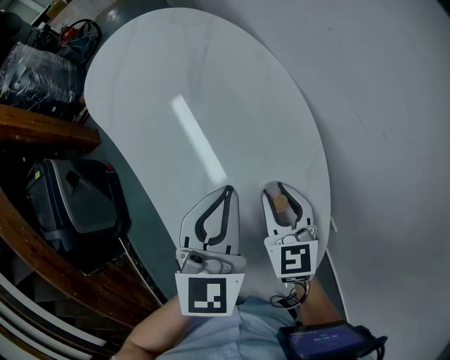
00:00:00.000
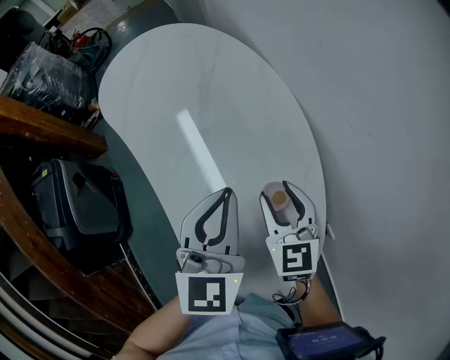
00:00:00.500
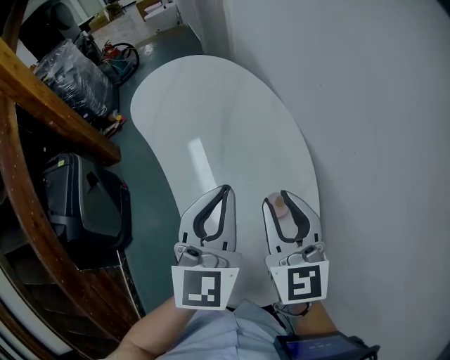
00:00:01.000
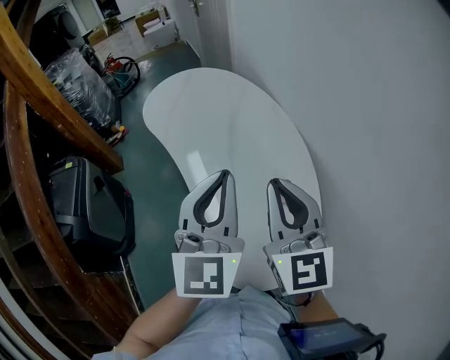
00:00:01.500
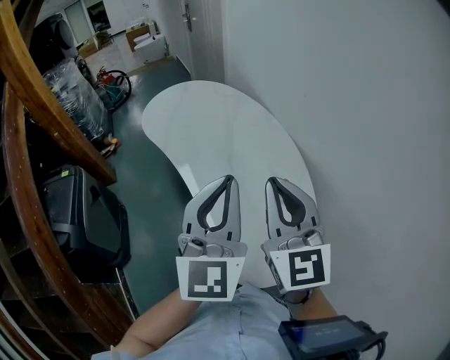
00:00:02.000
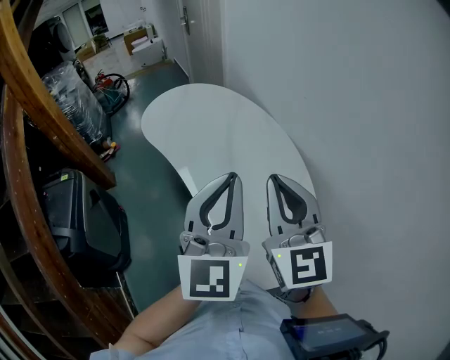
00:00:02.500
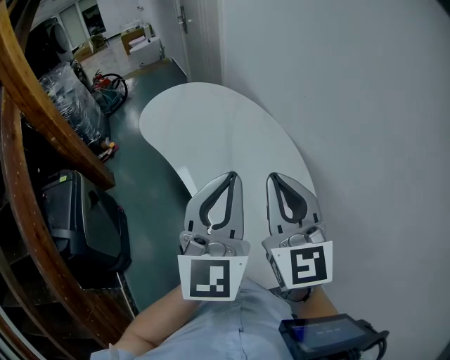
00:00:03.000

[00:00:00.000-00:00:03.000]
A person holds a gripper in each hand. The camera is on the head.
00:00:00.000 to 00:00:01.500: Both grippers travel together upward, about 20 cm. The right gripper changes its angle by about 30 degrees, and closes; the left gripper turns by approximately 30 degrees.
00:00:01.500 to 00:00:03.000: The right gripper changes place by about 5 cm.

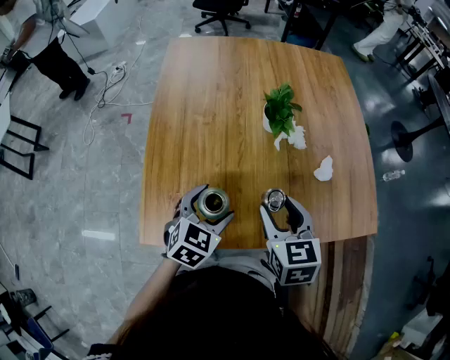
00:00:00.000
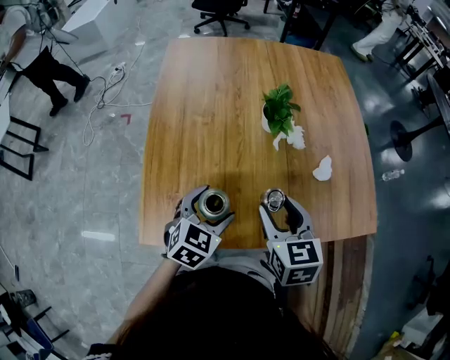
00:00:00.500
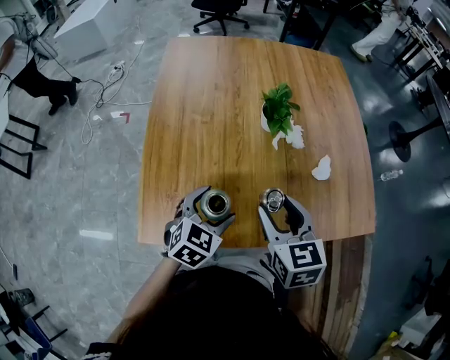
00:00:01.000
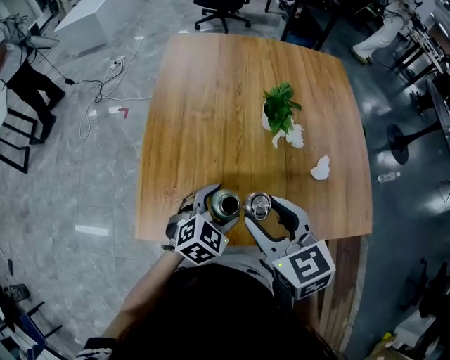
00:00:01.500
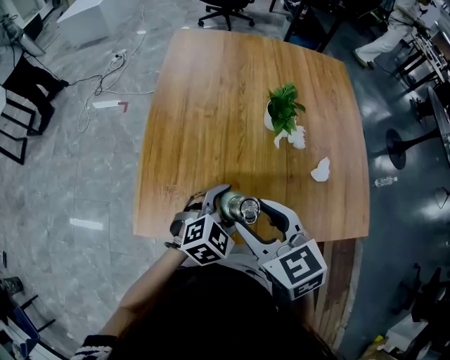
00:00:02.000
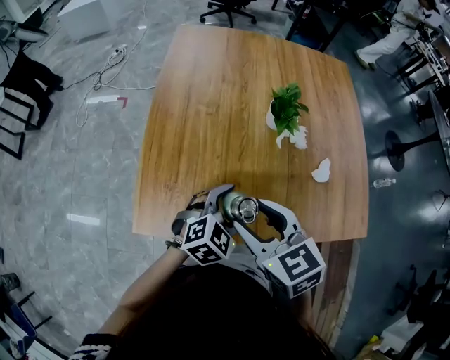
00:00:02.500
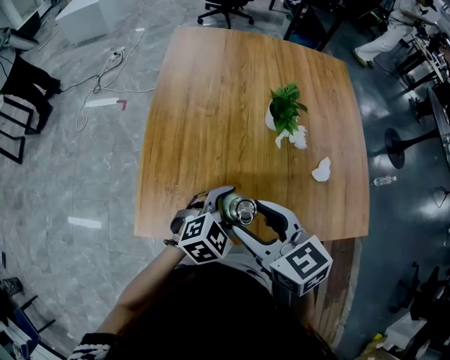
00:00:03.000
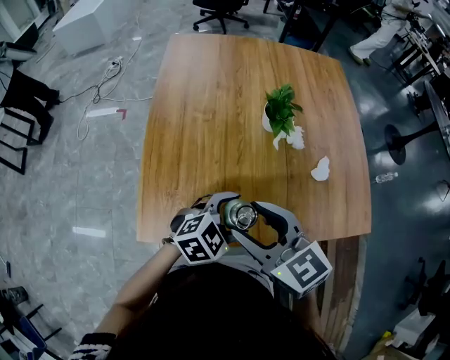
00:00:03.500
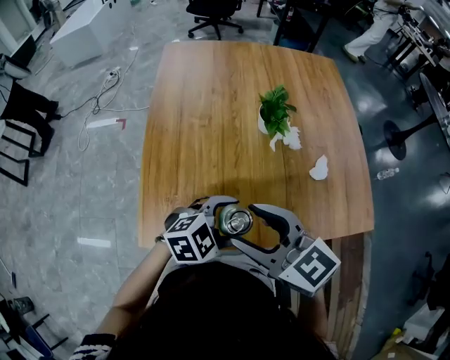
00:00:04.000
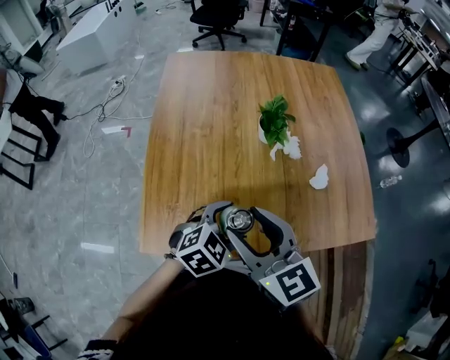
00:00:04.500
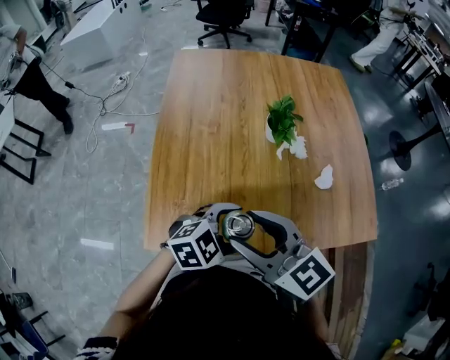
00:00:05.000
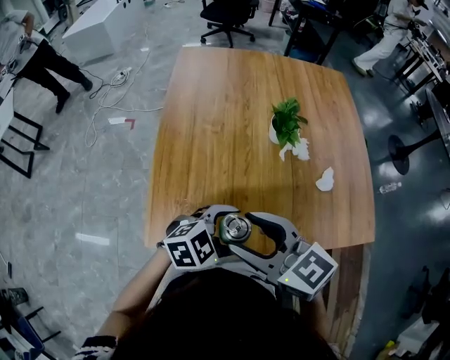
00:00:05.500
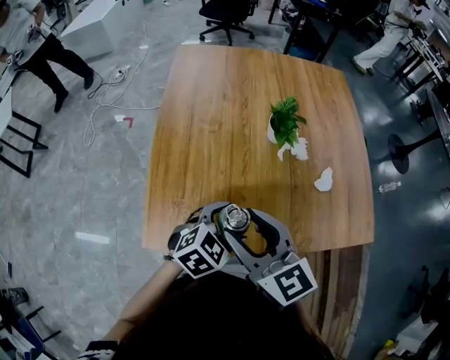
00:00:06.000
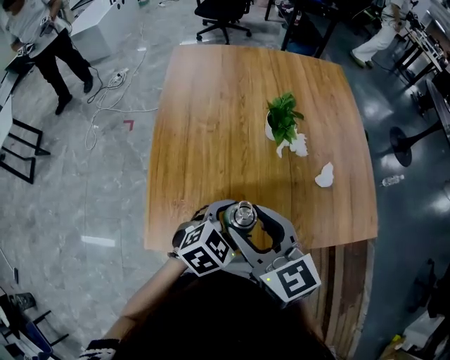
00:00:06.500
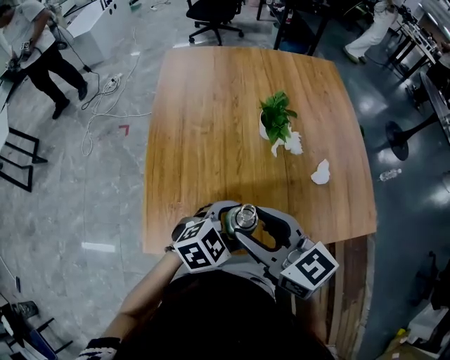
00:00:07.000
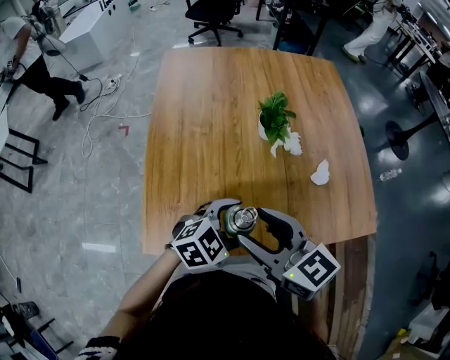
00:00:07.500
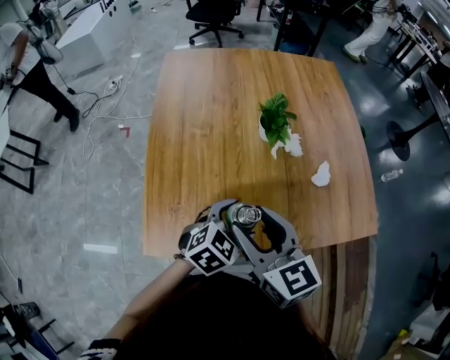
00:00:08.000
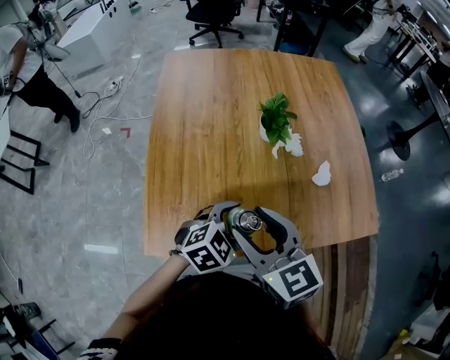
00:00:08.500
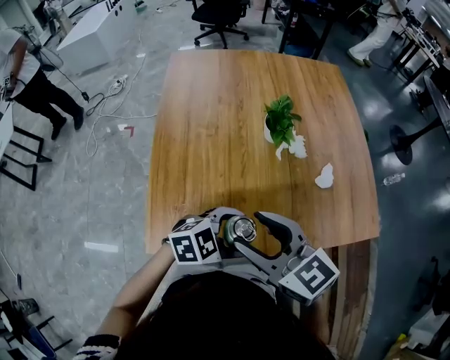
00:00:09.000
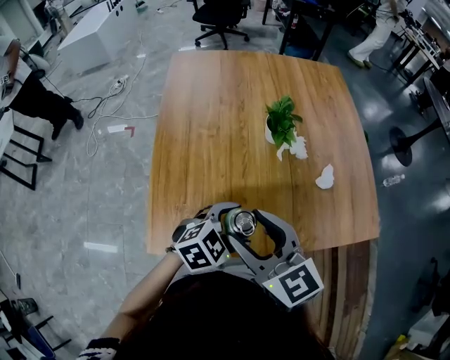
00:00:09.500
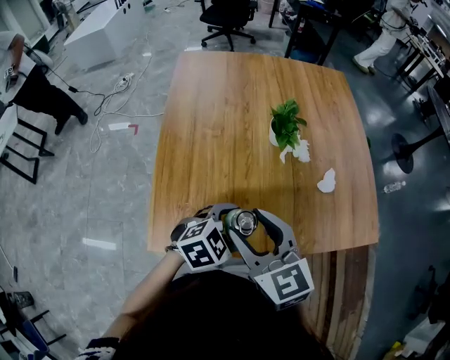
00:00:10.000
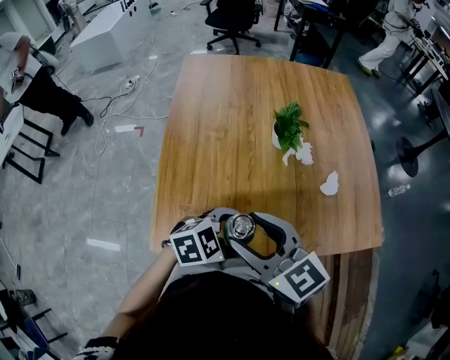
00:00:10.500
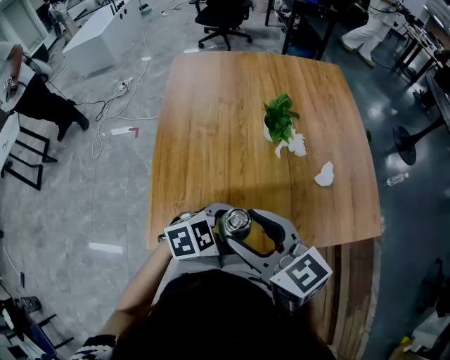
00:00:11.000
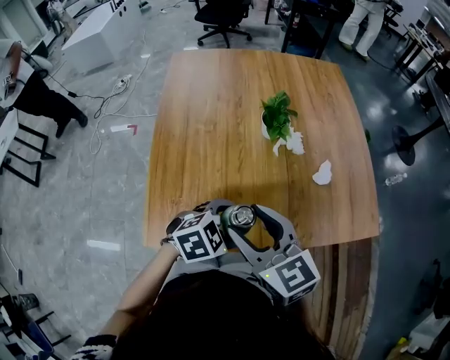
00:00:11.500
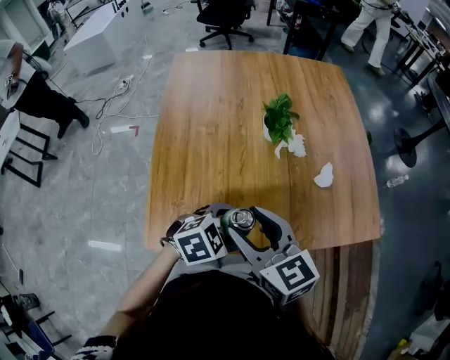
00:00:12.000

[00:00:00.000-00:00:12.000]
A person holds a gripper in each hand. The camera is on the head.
00:00:00.000 to 00:00:02.000: The left gripper is displaced to the right by about 5 cm. The right gripper shifts roughly 10 cm to the left, and swivels about 30 degrees.
00:00:02.000 to 00:00:04.000: The left gripper swivels some 20 degrees.
00:00:04.000 to 00:00:06.000: The left gripper turns by some 20 degrees.

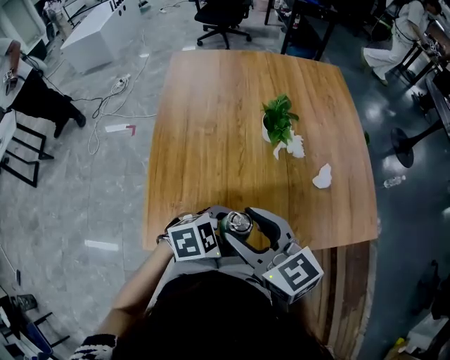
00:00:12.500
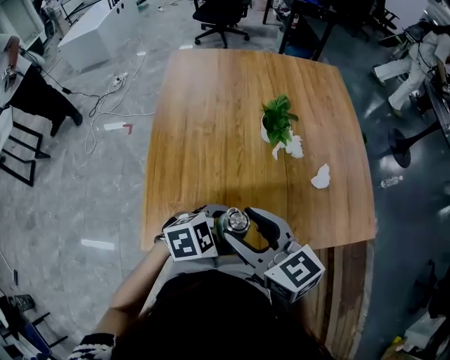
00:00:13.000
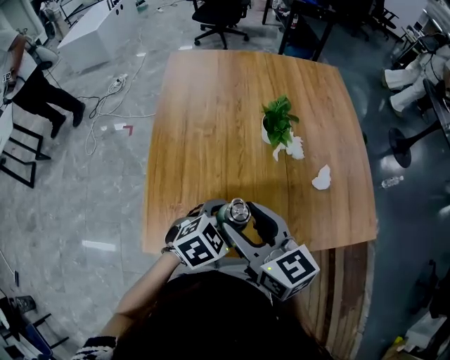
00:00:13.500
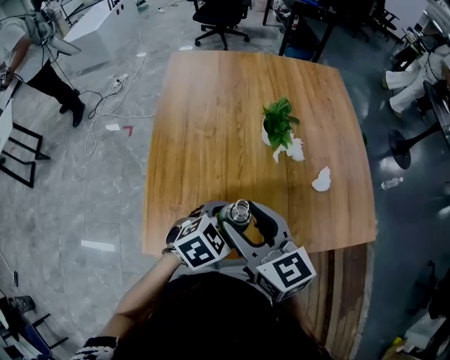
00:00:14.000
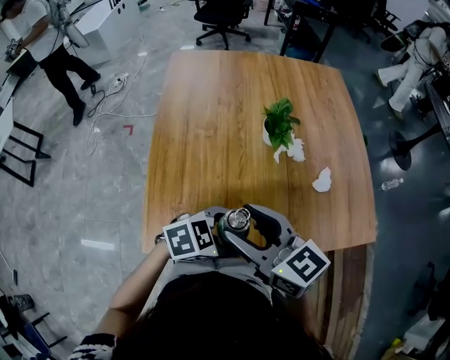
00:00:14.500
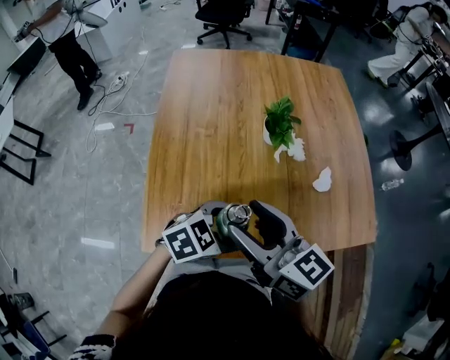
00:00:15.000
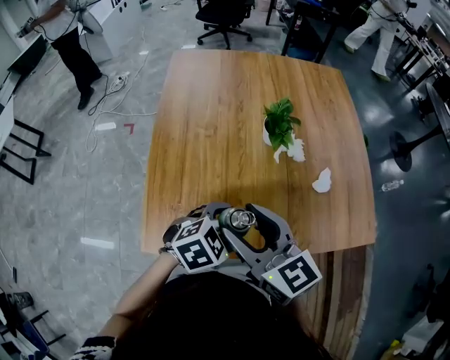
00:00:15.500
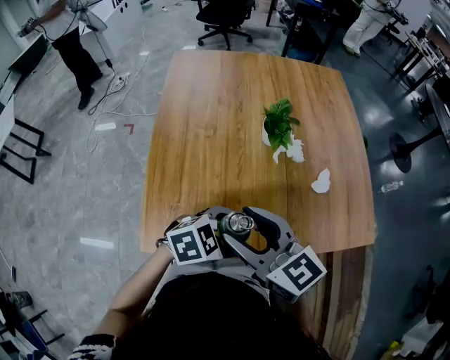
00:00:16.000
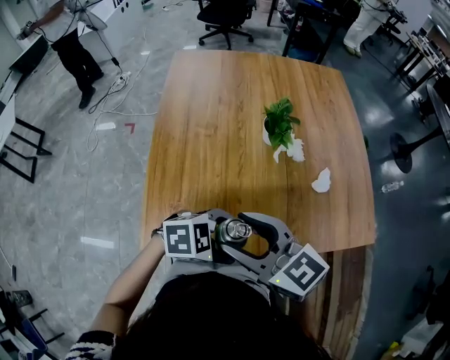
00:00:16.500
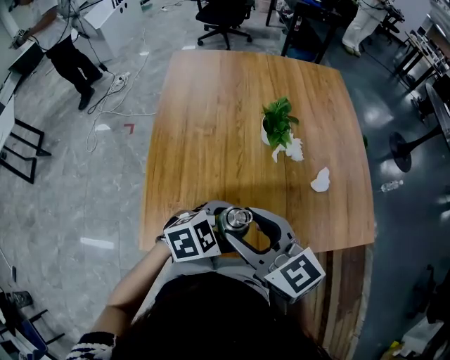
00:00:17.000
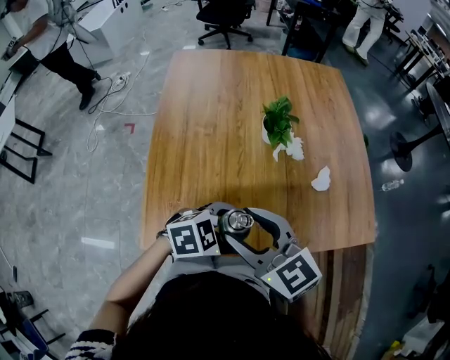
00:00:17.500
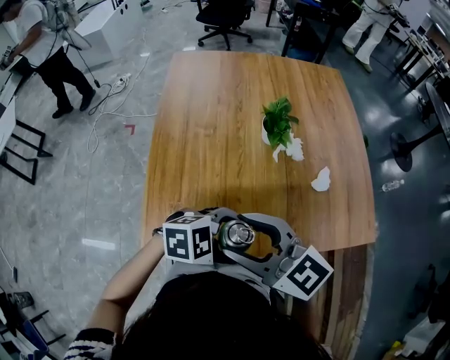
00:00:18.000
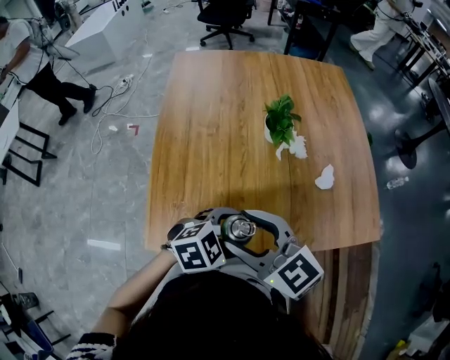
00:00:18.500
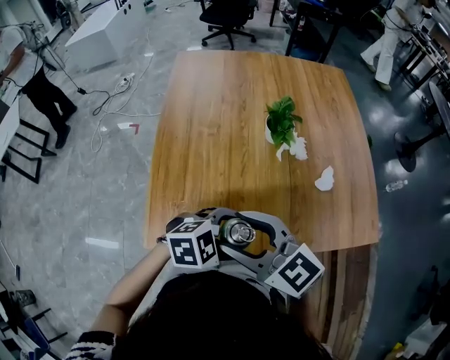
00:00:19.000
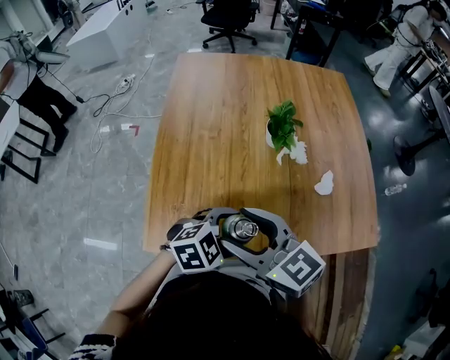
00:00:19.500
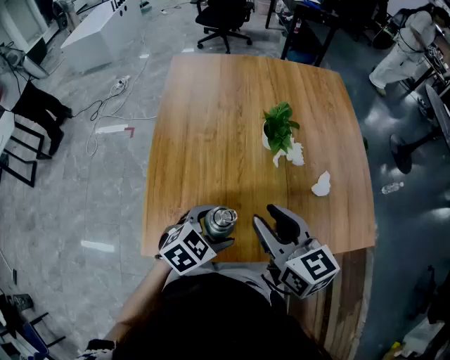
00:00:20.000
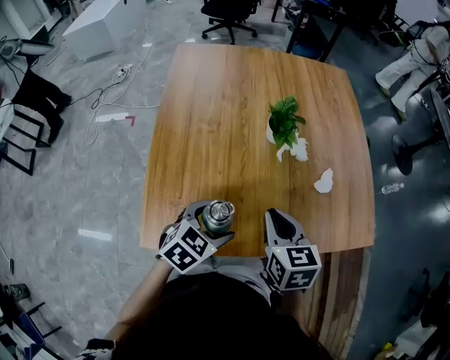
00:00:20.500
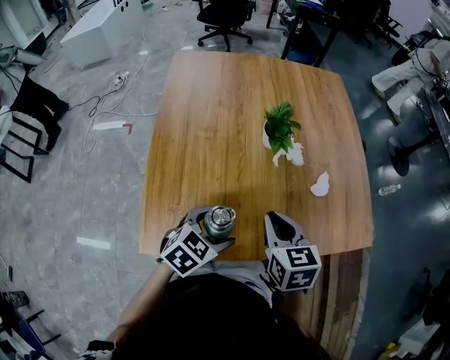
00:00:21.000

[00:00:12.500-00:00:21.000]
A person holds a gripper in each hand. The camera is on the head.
00:00:19.000 to 00:00:21.000: The left gripper shifts by roughly 10 cm, and rotates about 30 degrees. Meanwhile the right gripper ends up approximately 15 cm from where it was, turns by roughly 50 degrees, and closes.

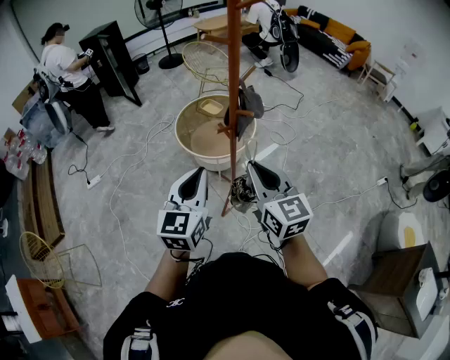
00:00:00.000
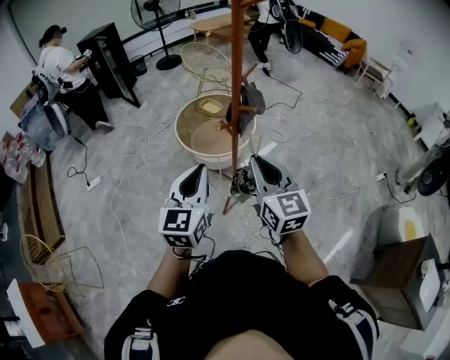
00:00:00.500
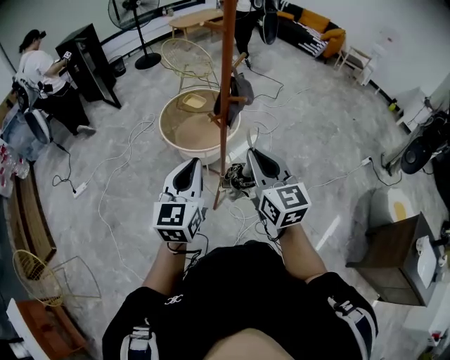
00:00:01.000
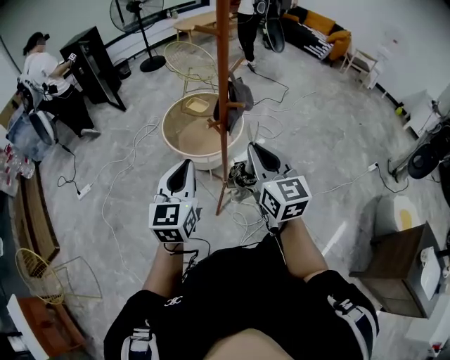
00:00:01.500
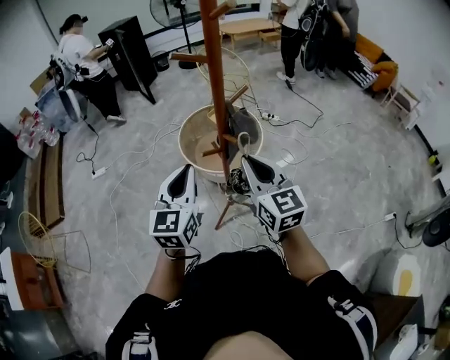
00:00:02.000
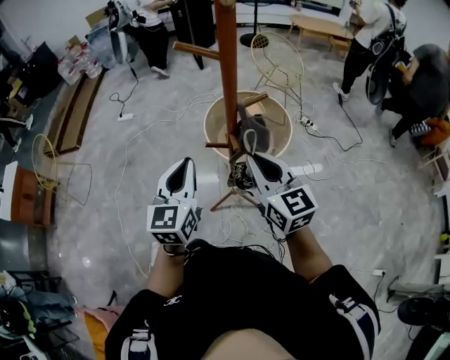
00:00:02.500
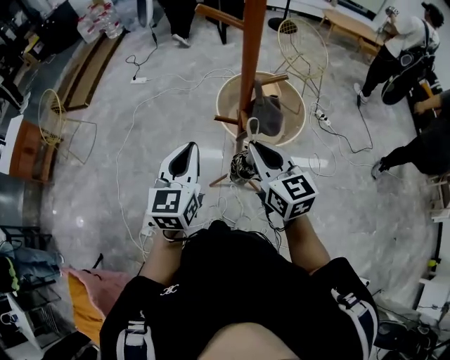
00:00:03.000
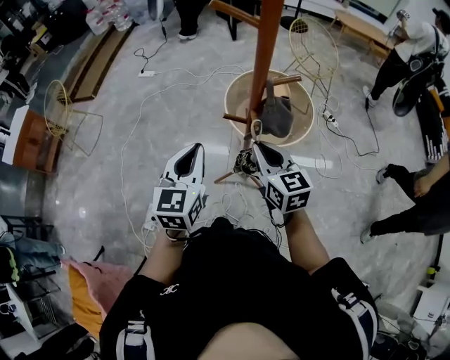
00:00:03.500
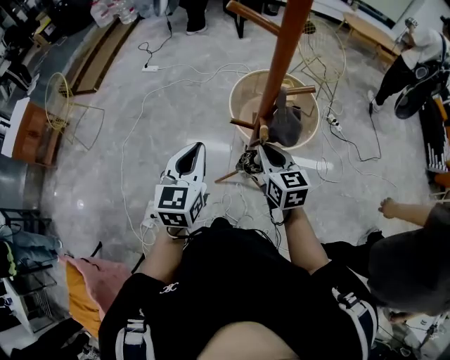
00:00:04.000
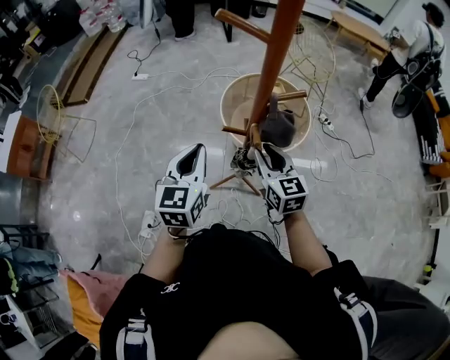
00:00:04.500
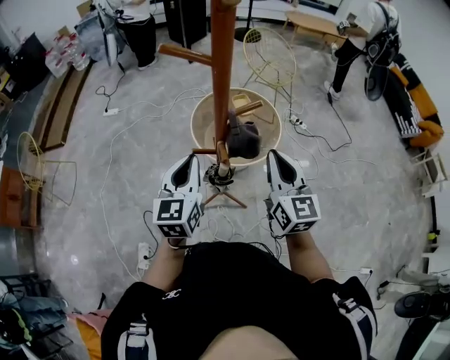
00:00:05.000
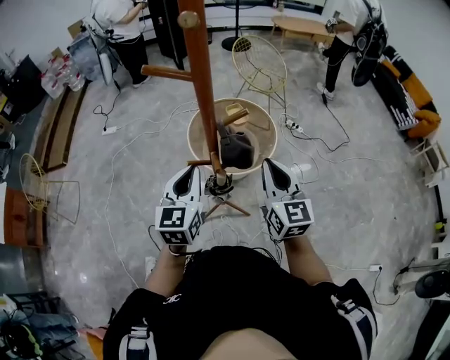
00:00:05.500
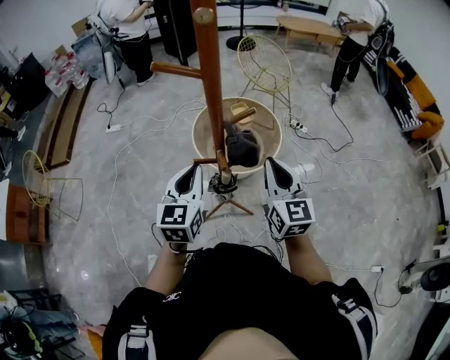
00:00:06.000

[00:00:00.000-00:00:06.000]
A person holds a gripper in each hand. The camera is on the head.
00:00:00.000 to 00:00:02.000: Both grippers travel together forward and to the right, about 15 cm.
00:00:02.000 to 00:00:04.000: The right gripper shifts some 15 cm downward, and rotates approximately 40 degrees. The left gripper travels downward by roughly 10 cm, and swivels about 30 degrees.
00:00:04.000 to 00:00:06.000: The left gripper moves to the right and forward, about 10 cm; the right gripper travels to the right and upward by about 15 cm, and turns by approximately 30 degrees.
